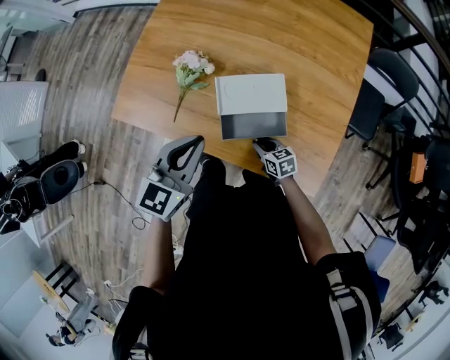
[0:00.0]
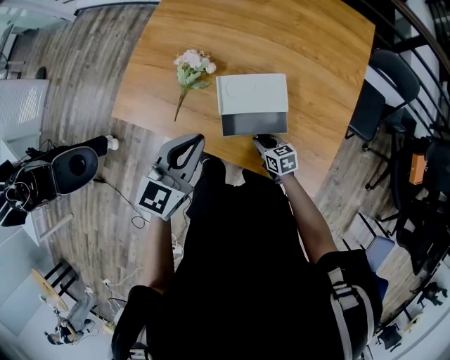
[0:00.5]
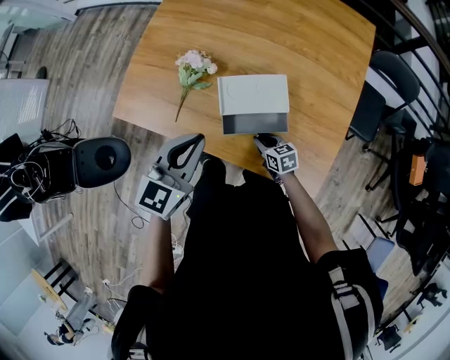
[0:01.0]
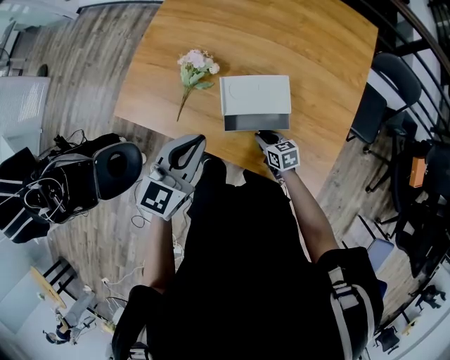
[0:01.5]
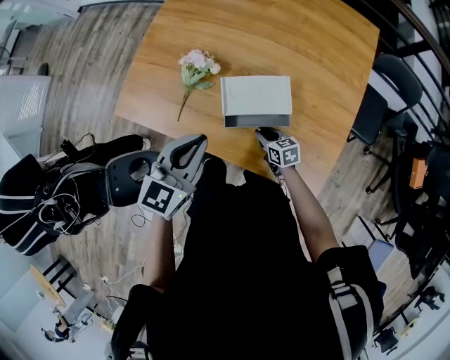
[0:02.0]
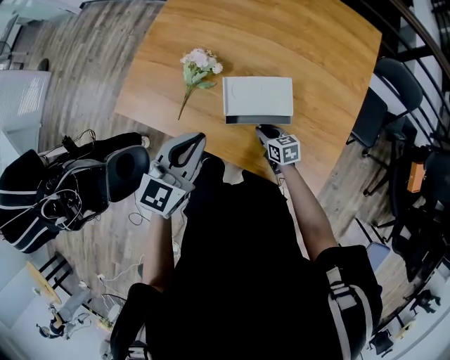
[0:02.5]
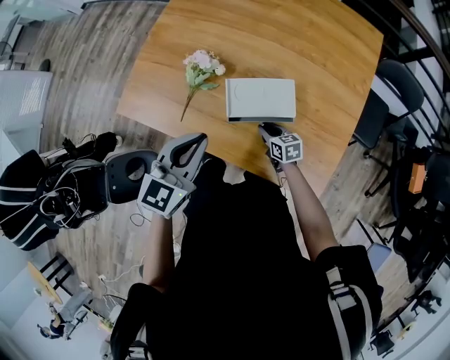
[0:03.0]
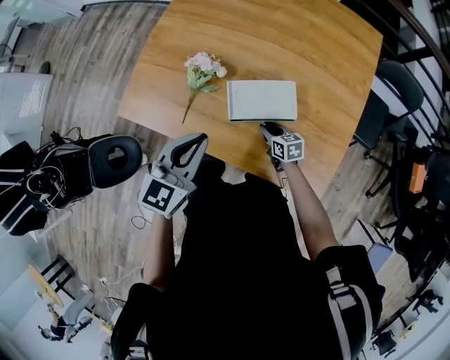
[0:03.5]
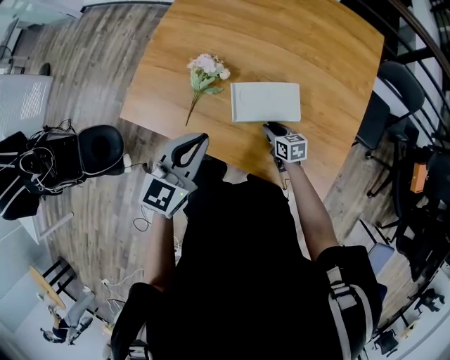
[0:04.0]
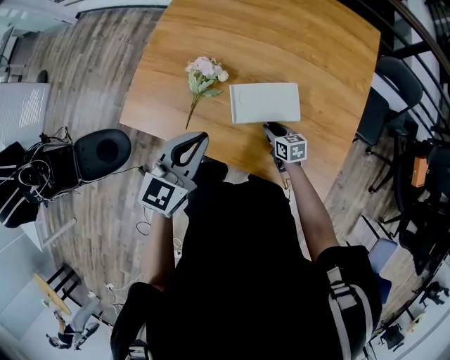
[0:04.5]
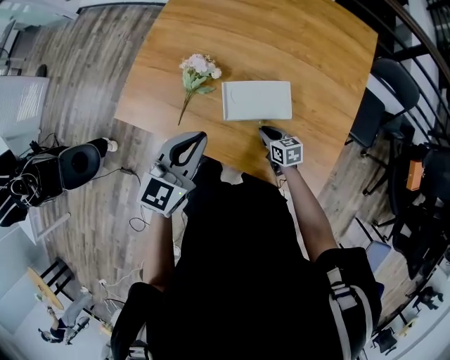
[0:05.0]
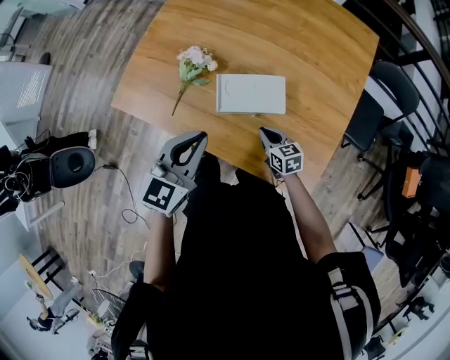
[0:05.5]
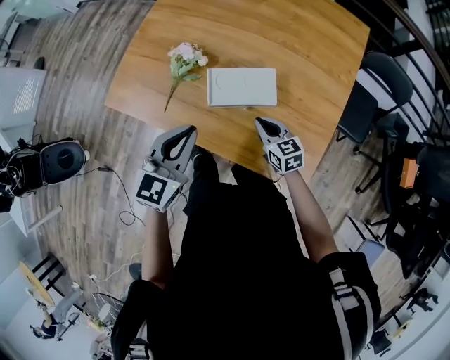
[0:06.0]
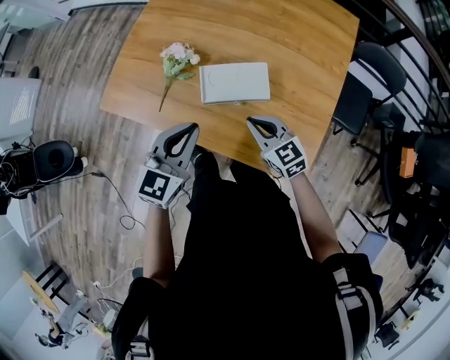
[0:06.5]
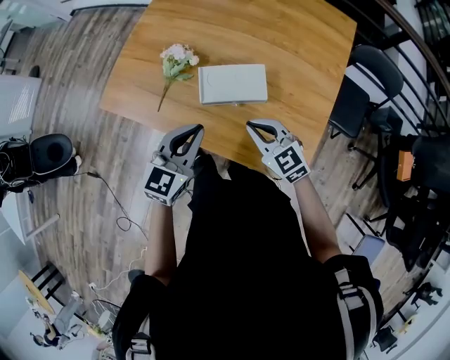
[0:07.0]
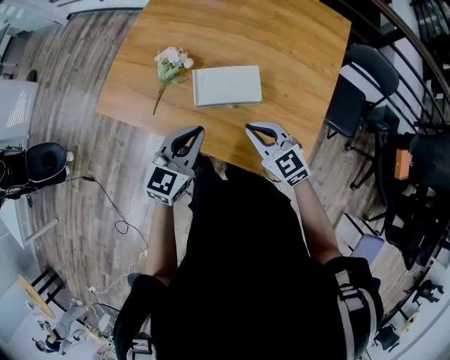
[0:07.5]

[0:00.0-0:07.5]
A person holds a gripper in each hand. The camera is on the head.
0:00.0 to 0:02.0: The grippers stay close to where they were, moving slightly.
0:02.0 to 0:04.0: The grippers move only a little.
0:04.0 to 0:05.5: The right gripper shifts some 5 cm backward. The left gripper shifts roughly 5 cm to the right.
0:05.5 to 0:07.5: The right gripper shifts about 20 cm upward, and rotates roughly 30 degrees; the left gripper moves some 10 cm.

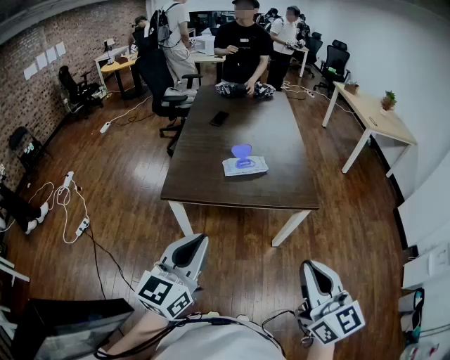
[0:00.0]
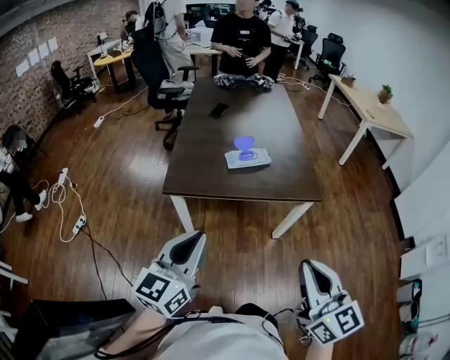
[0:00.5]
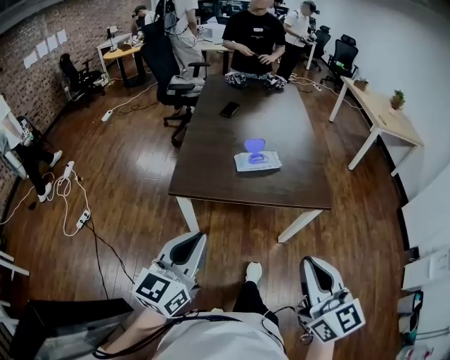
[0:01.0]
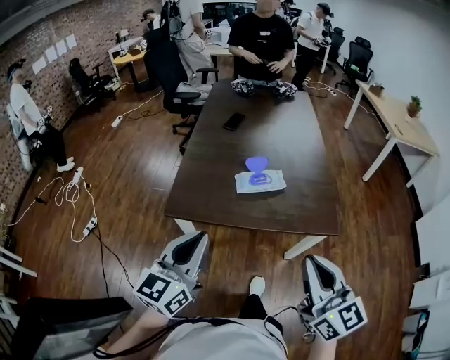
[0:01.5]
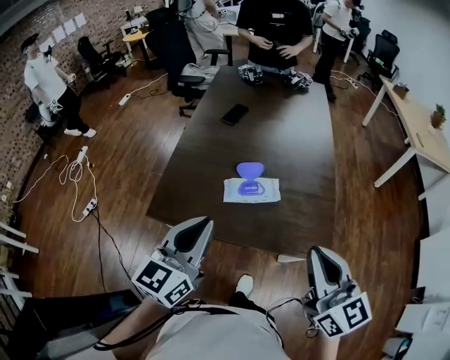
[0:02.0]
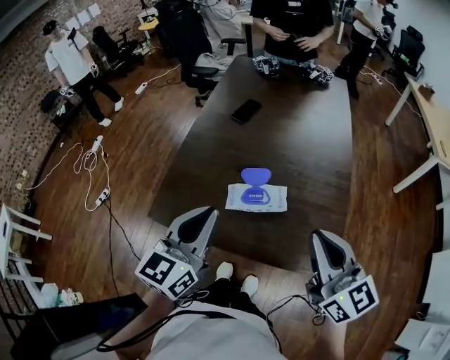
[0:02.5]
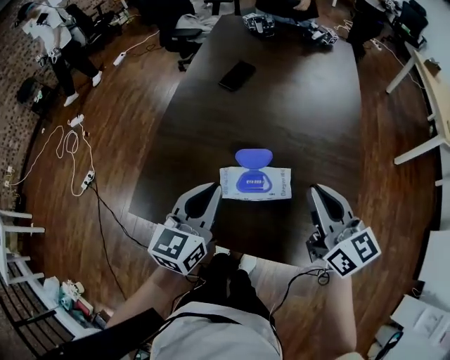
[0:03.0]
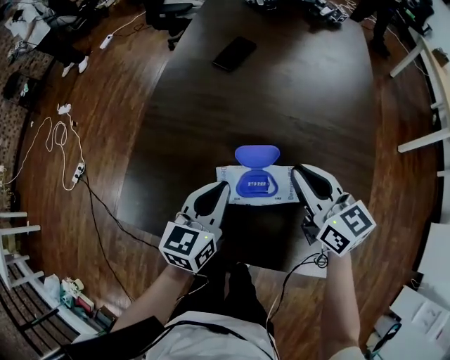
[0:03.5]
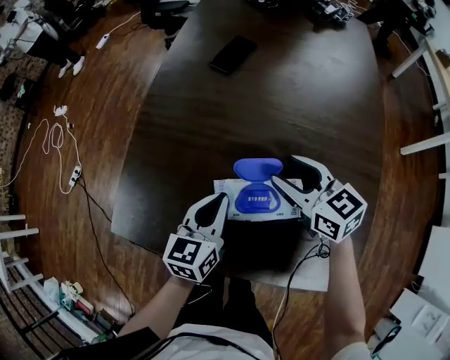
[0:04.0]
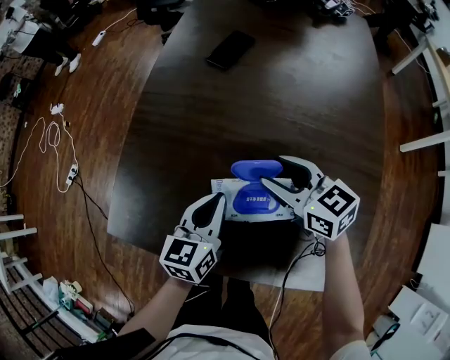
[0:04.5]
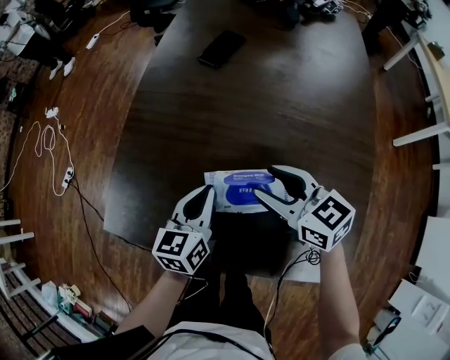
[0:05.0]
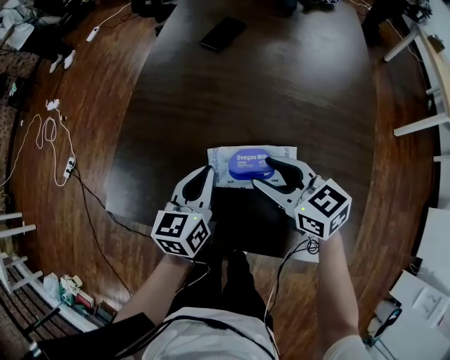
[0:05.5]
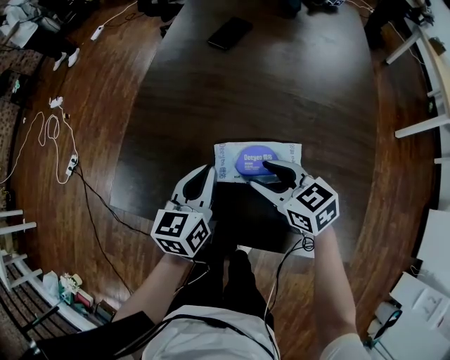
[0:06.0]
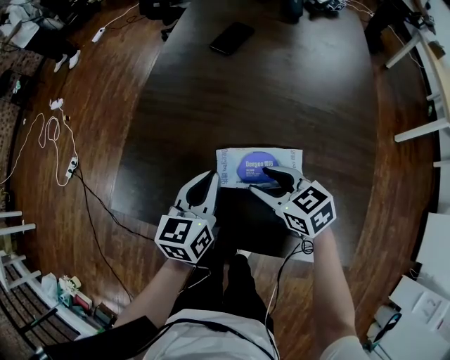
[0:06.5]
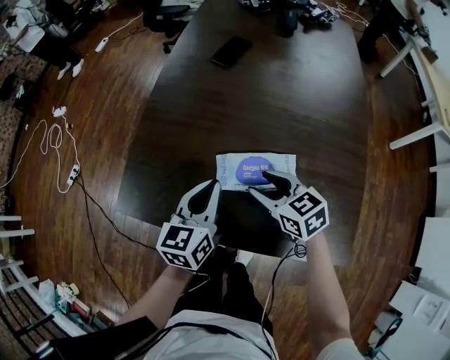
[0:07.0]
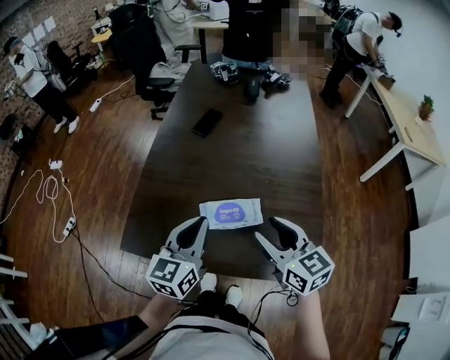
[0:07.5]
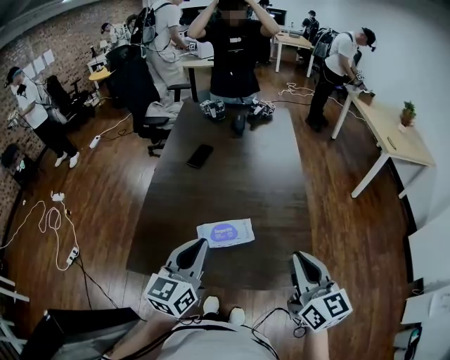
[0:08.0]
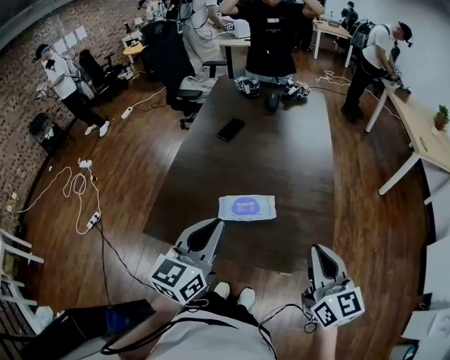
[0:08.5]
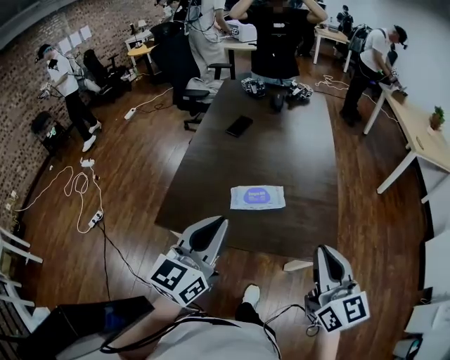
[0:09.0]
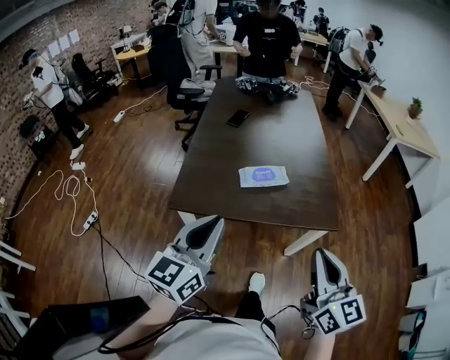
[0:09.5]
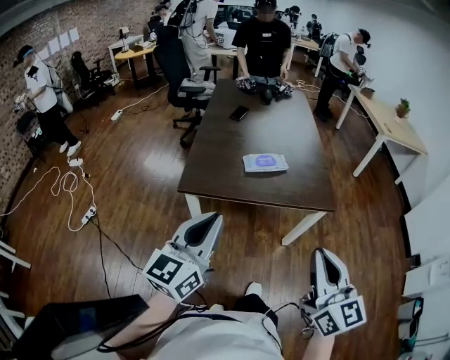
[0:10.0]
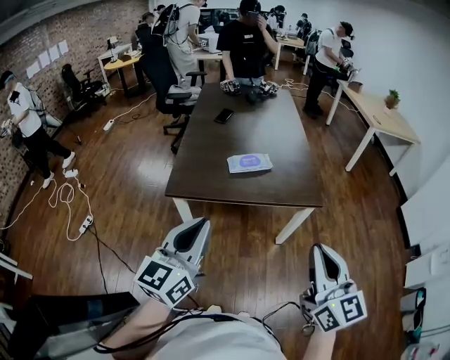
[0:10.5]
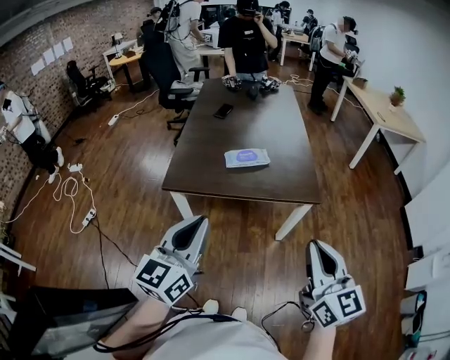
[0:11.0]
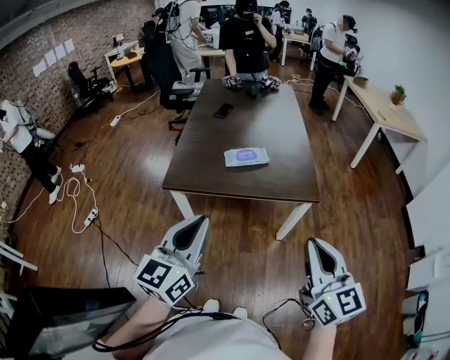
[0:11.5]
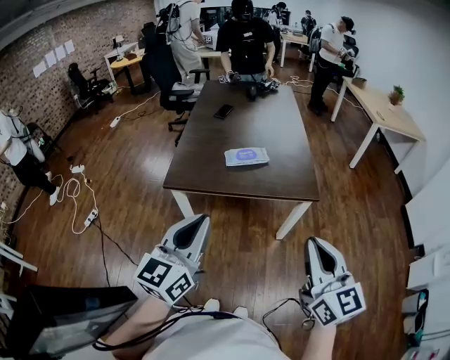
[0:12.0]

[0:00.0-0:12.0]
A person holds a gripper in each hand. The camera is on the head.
0:00.0 to 0:02.0: The grippers both shift forward by some 30 cm.
0:02.0 to 0:04.0: The left gripper moves downward and forward, roughly 40 cm, and swivels roughly 20 degrees. The right gripper shifts about 50 cm forward and downward, swivels approximately 30 degrees, and opens its fingers.
0:04.0 to 0:06.0: The right gripper heads backward and to the left, covering roughly 10 cm.
0:06.0 to 0:08.0: The grippers both shift upward by about 25 cm. The right gripper swivels approximately 50 degrees, and closes its fingers; the left gripper turns by roughly 20 degrees.
0:08.0 to 0:10.0: The pair of grippers is taken backward, some 40 cm.
0:10.0 to 0:12.0: The grippers both shift to the right by some 10 cm.

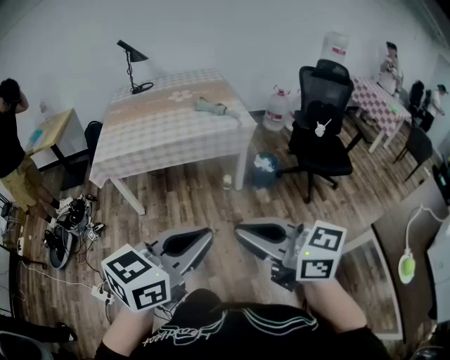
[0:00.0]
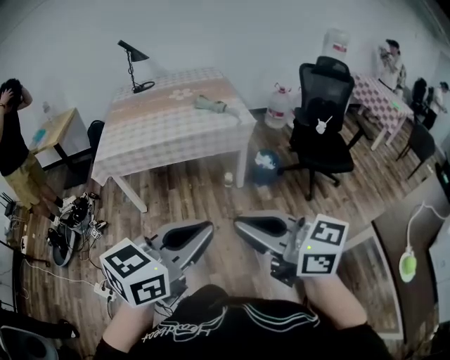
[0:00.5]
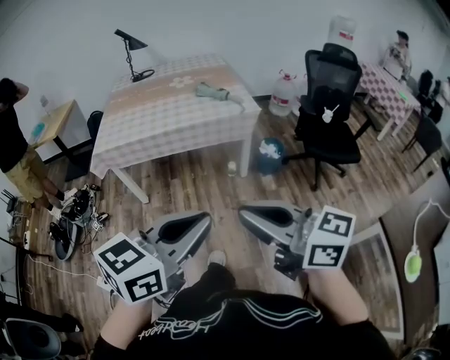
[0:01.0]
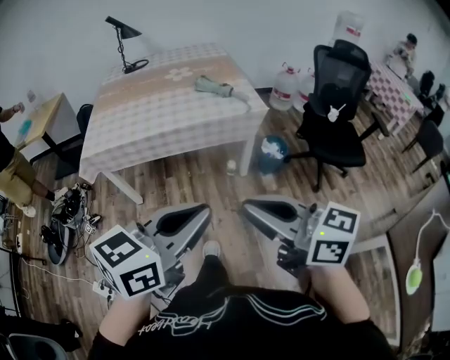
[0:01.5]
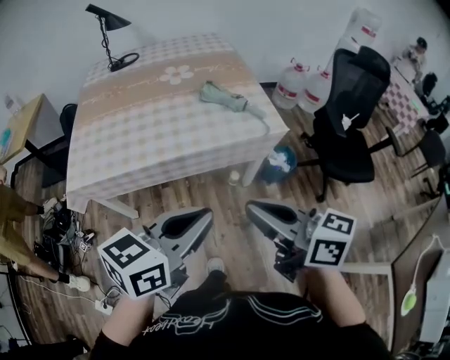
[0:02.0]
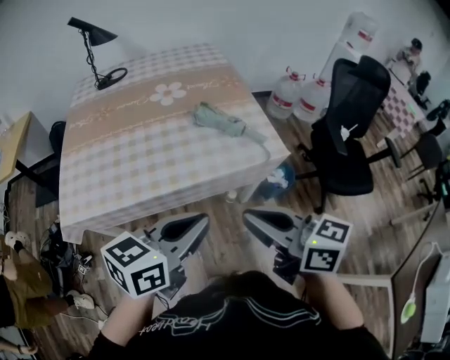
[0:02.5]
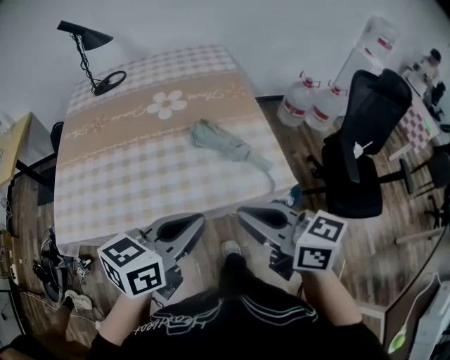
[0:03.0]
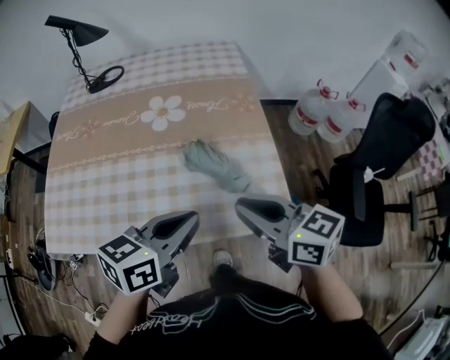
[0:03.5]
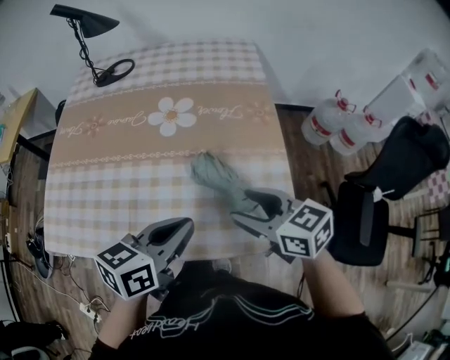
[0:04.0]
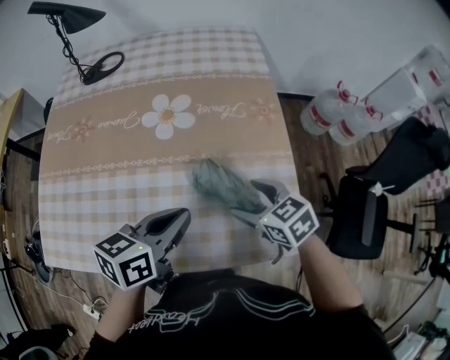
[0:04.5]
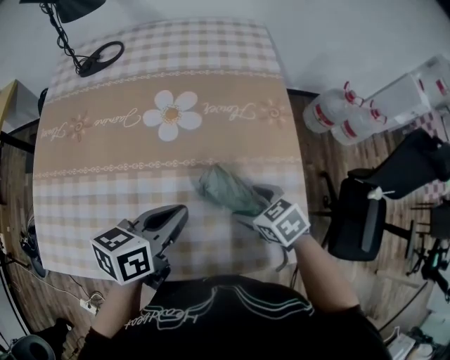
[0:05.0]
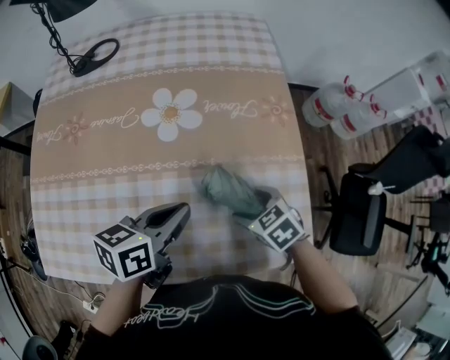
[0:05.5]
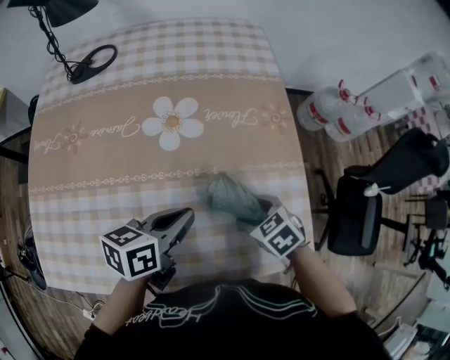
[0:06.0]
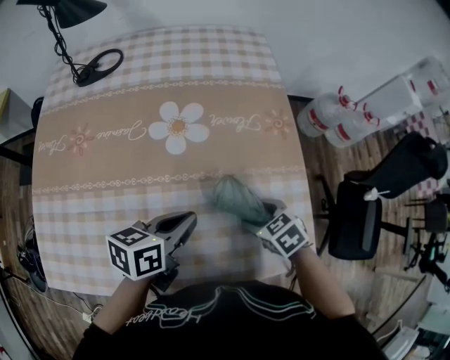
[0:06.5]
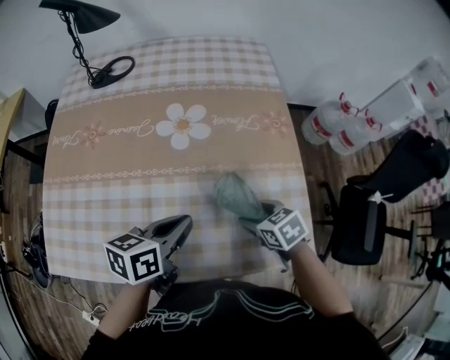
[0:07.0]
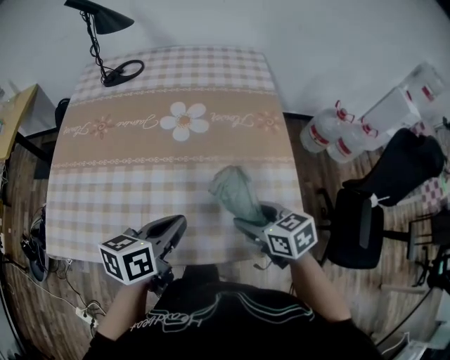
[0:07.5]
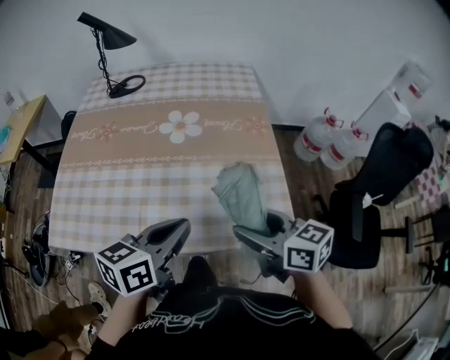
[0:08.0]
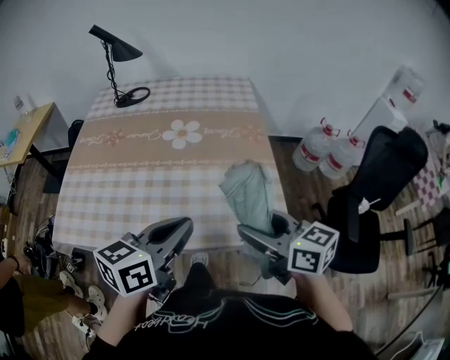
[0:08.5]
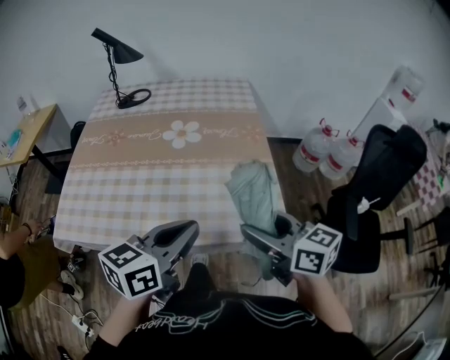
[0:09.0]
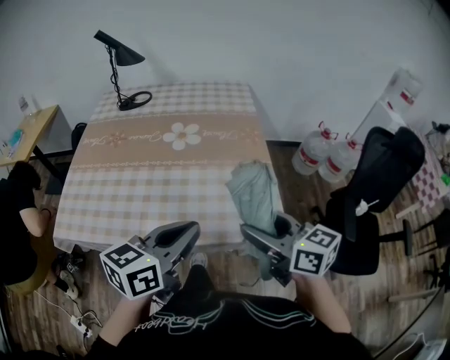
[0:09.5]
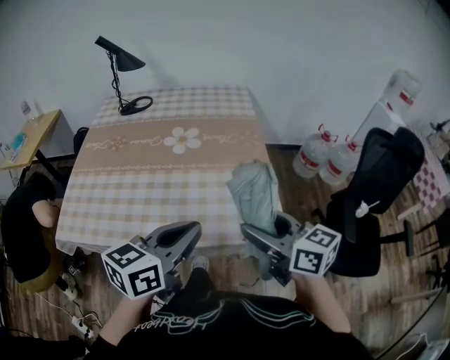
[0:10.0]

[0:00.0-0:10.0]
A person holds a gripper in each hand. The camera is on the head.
0:00.0 to 0:02.0: The two grippers go about 25 cm forward.
0:02.0 to 0:04.0: Both grippers travel together forward and downward, some 30 cm. The right gripper changes its angle by roughly 30 degrees, and opens up. Meanwhile the left gripper rotates roughly 20 degrees.
0:04.0 to 0:06.0: The left gripper shifts approximately 15 cm forward, downward and to the left; the right gripper shifts approximately 20 cm downward and forward, and angles its fingers downward, by about 40 degrees.
0:06.0 to 0:08.0: The right gripper shifts about 25 cm upward and backward, and points its fingers roughly 50 degrees further upward. The left gripper moves backward and upward, approximately 20 cm.
0:08.0 to 0:10.0: The left gripper heads backward, upward and to the right, covering approximately 10 cm. The right gripper moves upward and backward, about 10 cm.
